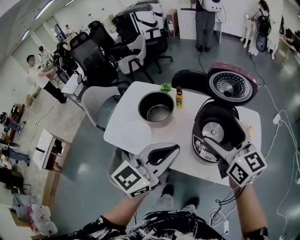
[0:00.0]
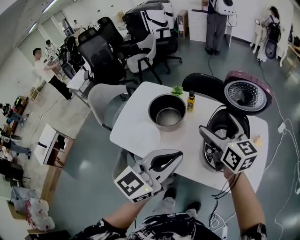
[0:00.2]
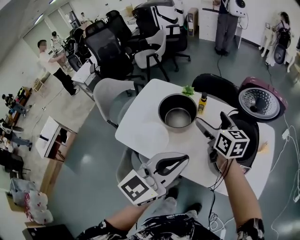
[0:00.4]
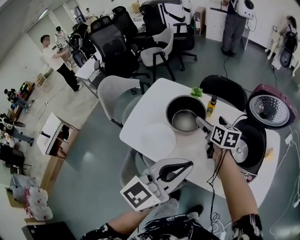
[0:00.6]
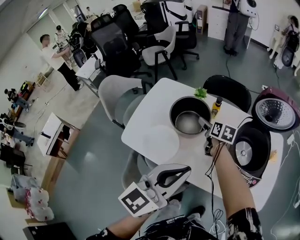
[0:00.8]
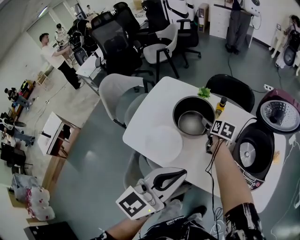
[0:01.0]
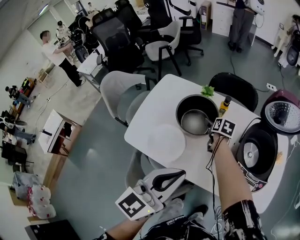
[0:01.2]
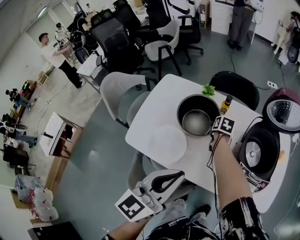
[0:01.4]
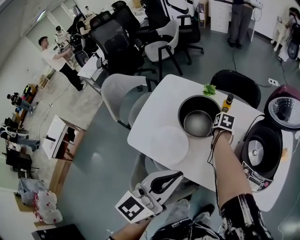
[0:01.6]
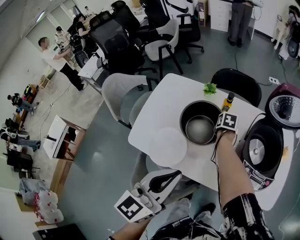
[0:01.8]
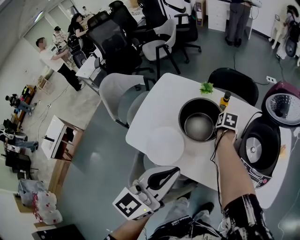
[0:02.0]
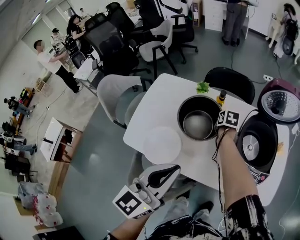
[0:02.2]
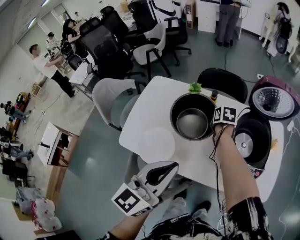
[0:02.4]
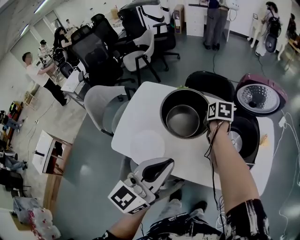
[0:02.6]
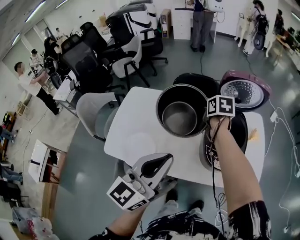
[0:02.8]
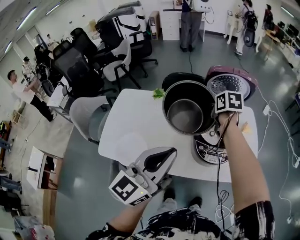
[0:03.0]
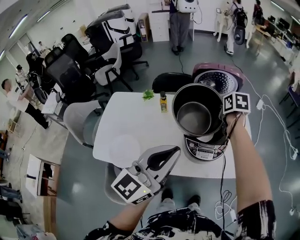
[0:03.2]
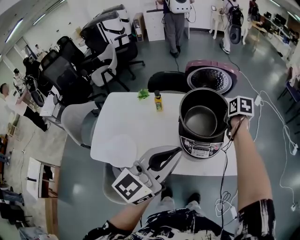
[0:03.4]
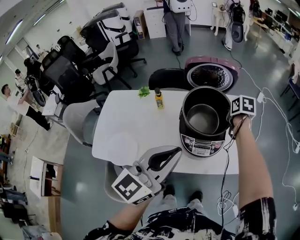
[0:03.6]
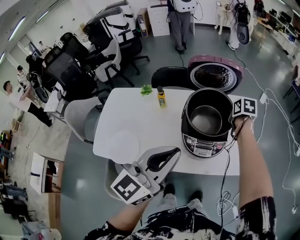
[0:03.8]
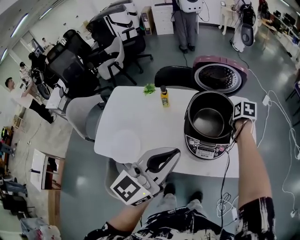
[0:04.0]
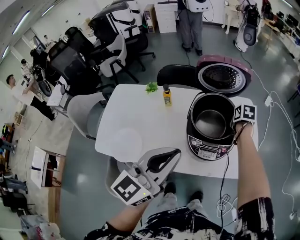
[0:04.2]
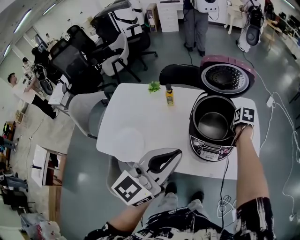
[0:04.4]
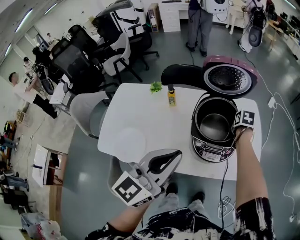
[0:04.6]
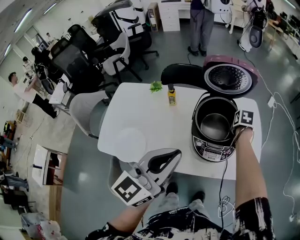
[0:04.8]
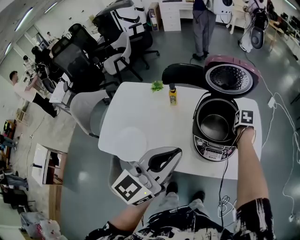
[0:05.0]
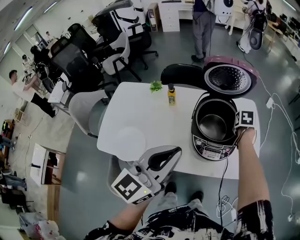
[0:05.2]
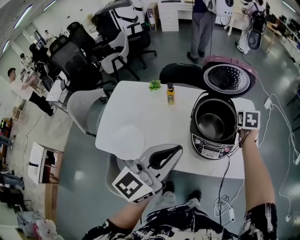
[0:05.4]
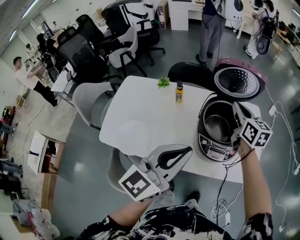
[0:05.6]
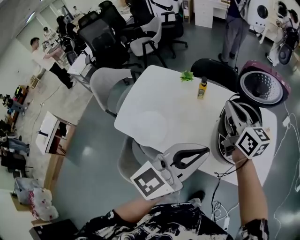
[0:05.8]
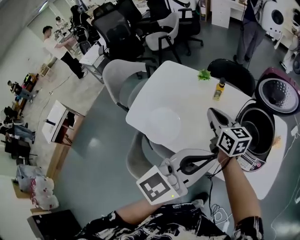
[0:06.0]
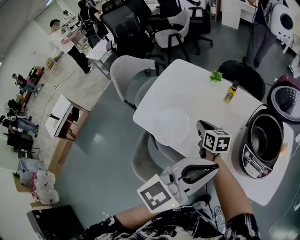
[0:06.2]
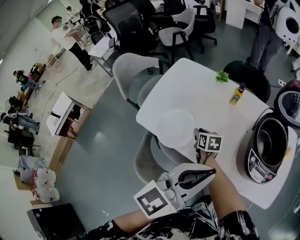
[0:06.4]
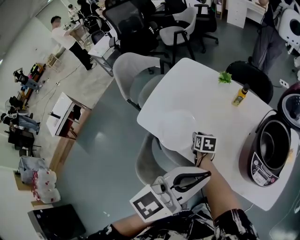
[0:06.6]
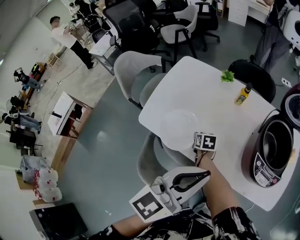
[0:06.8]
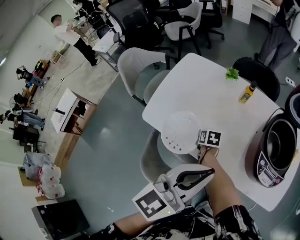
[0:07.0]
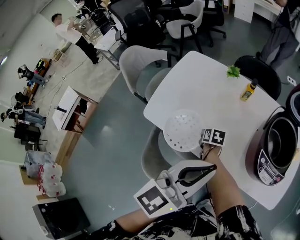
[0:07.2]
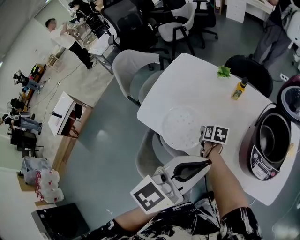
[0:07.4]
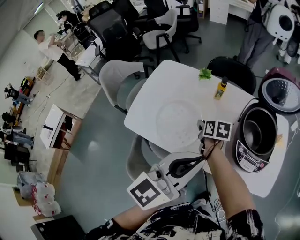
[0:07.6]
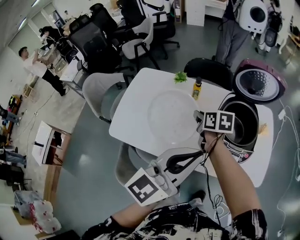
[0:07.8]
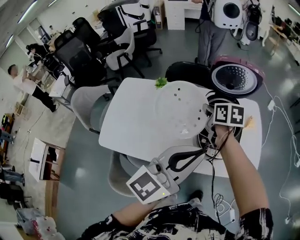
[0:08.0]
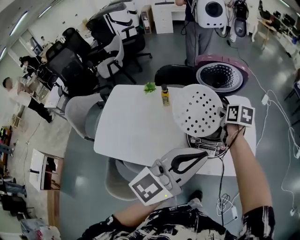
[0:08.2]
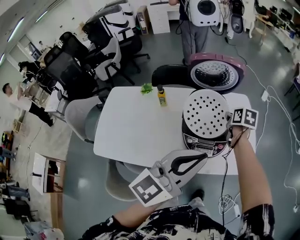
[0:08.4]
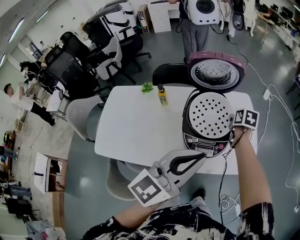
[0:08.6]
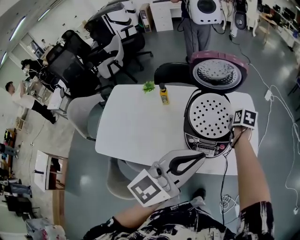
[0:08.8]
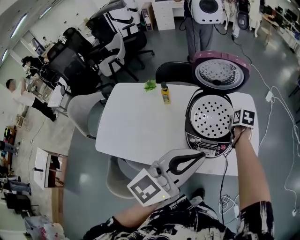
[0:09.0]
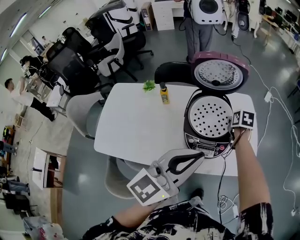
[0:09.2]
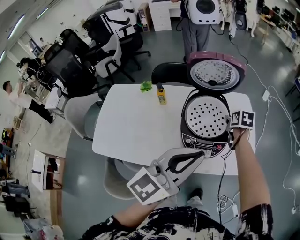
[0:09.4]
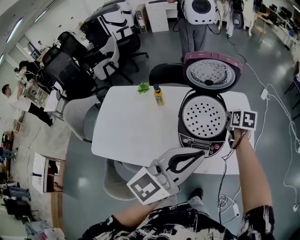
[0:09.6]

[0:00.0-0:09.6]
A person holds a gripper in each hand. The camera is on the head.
0:00.0 to 0:01.6: The left gripper shifts some 20 cm to the left, while the right gripper goes some 50 cm downward, forward and to the left, points its fingers some 50 degrees further downward, and closes its fingers.
0:01.6 to 0:03.2: The right gripper shifts some 40 cm to the right and upward. Meanwhile the left gripper is displaced to the right and upward by approximately 20 cm, and changes its angle by about 20 degrees.
0:03.2 to 0:04.8: The right gripper is displaced downward and to the right by roughly 15 cm.
0:04.8 to 0:06.4: The left gripper changes place by about 10 cm; the right gripper travels upward and back again, some 25 cm each way, and swivels approximately 50 degrees.
0:06.4 to 0:08.0: The right gripper shifts some 35 cm to the right and upward, and turns by about 20 degrees; the left gripper moves to the right, approximately 15 cm.
0:08.0 to 0:09.6: The right gripper travels to the right by roughly 25 cm, and rotates some 20 degrees. Meanwhile the left gripper heads to the right, covering approximately 10 cm.

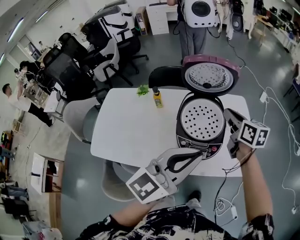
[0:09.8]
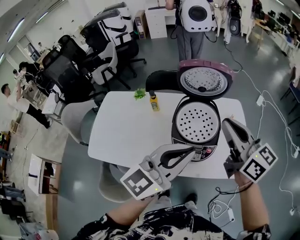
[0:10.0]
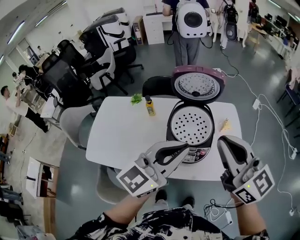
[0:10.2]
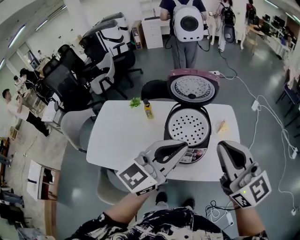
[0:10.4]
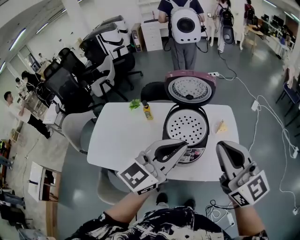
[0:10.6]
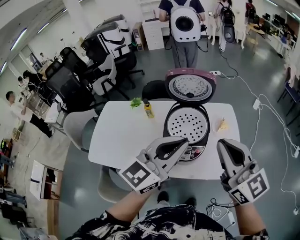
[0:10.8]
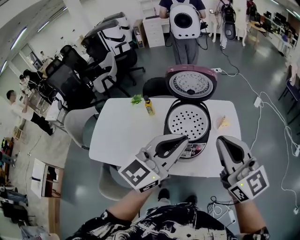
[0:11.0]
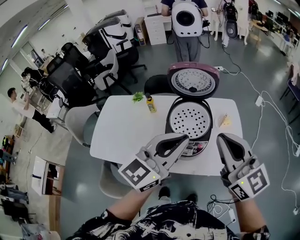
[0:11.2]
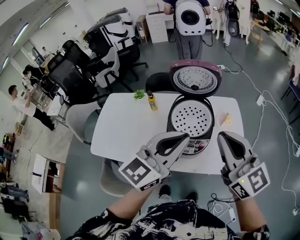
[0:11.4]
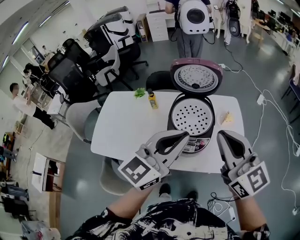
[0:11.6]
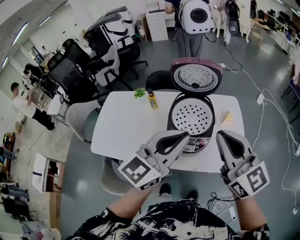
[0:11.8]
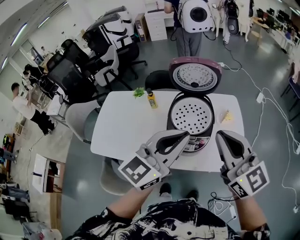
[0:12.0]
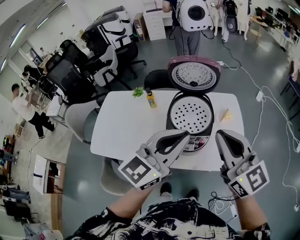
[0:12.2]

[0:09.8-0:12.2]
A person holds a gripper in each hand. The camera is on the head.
0:09.8 to 0:11.0: The right gripper shifts roughly 25 cm backward and upward, and swivels some 40 degrees; the left gripper moves some 5 cm.
0:11.0 to 0:12.2: The grippers stay close to where they were, moving slightly.

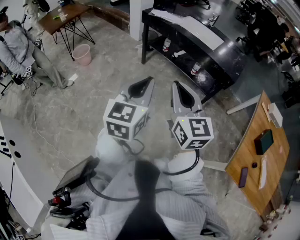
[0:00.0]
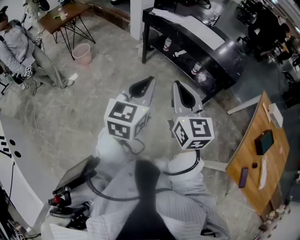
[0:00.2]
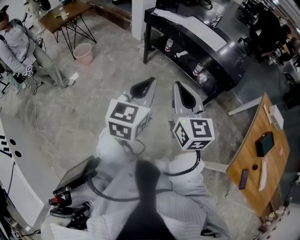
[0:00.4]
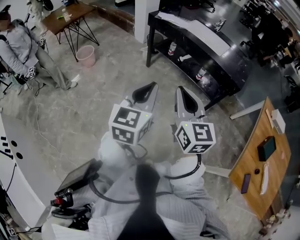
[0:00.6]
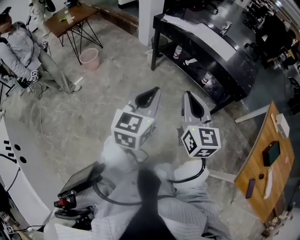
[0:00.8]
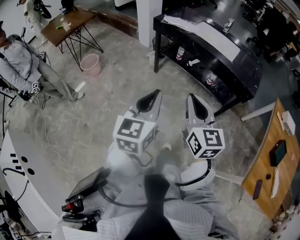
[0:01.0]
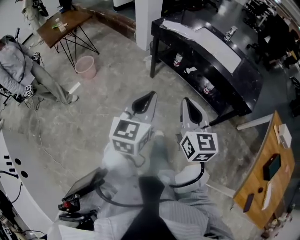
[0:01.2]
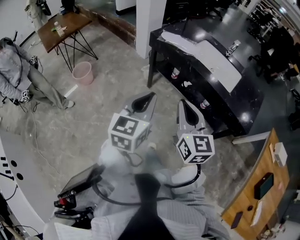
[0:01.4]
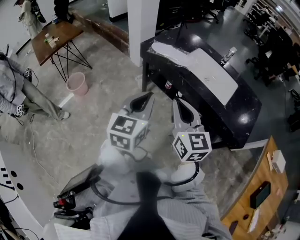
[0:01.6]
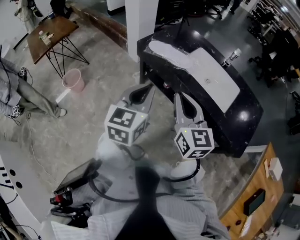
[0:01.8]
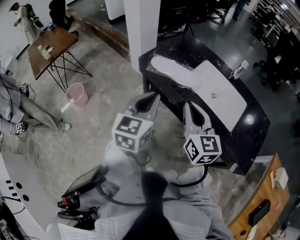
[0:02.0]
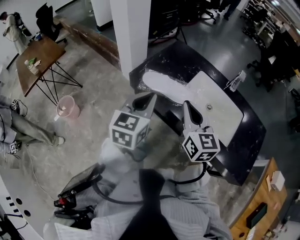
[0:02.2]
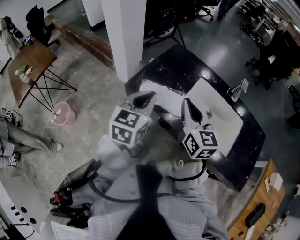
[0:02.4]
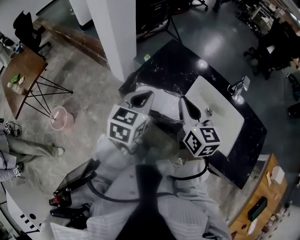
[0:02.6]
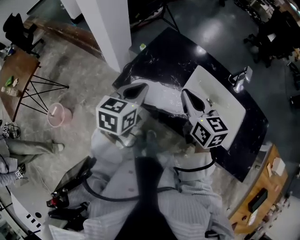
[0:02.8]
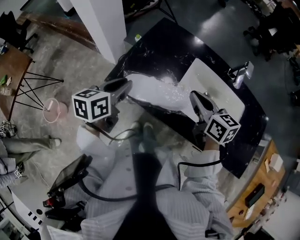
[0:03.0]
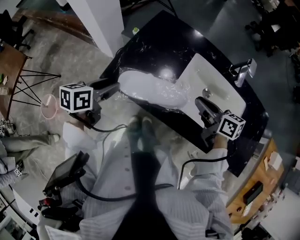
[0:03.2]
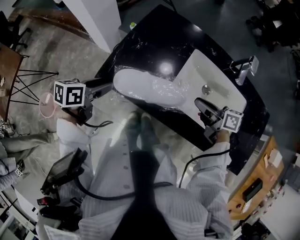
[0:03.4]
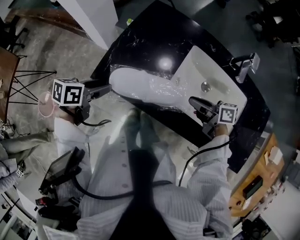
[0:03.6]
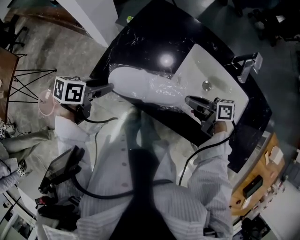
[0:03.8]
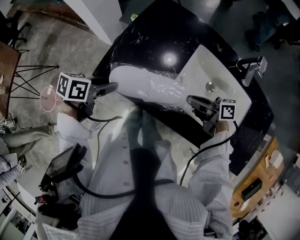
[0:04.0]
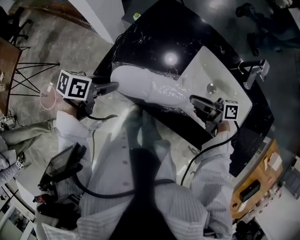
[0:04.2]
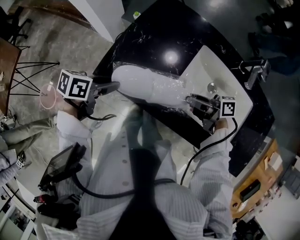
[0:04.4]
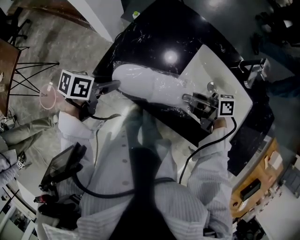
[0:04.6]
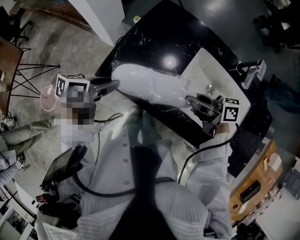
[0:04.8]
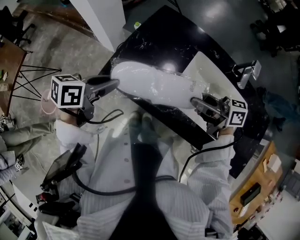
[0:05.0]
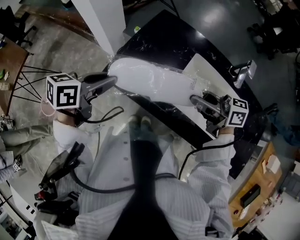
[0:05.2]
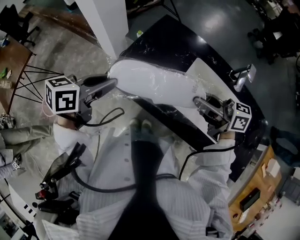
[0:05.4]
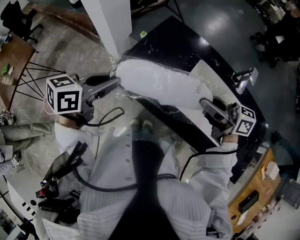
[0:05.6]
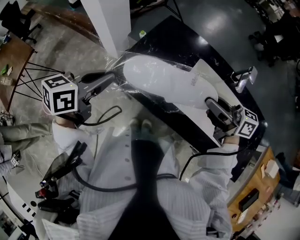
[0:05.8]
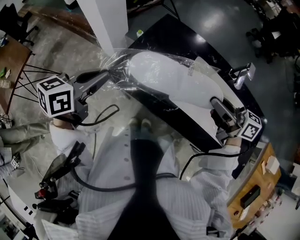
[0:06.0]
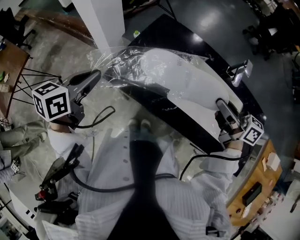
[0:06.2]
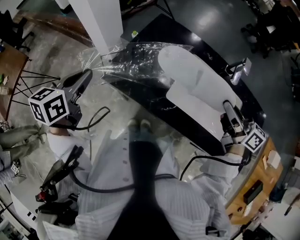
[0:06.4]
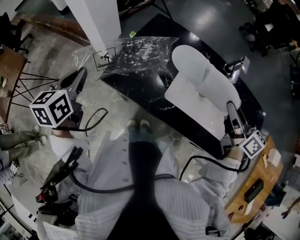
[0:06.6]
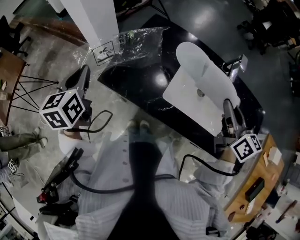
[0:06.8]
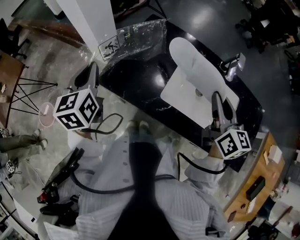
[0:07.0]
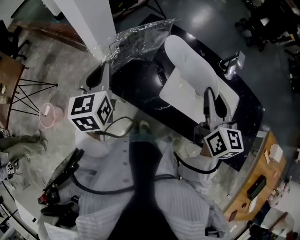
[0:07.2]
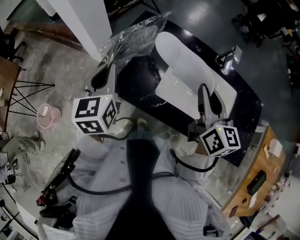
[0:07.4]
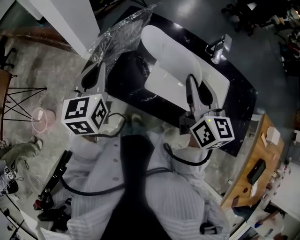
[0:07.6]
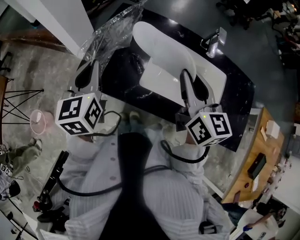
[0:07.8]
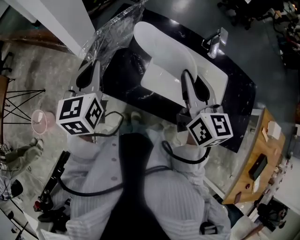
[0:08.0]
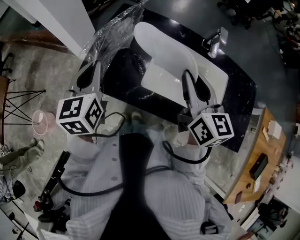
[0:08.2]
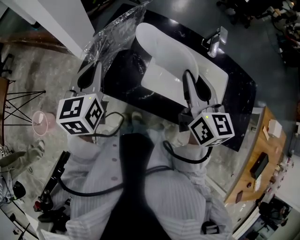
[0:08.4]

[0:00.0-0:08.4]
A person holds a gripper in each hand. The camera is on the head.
0:00.0 to 0:01.4: The grippers both shift forward by roughly 30 cm.
0:01.4 to 0:02.8: Both grippers are carried forward, about 60 cm. The left gripper rotates about 30 degrees.
0:02.8 to 0:04.2: The grippers both shift downward by approximately 15 cm. The right gripper changes its angle by about 60 degrees, and opens up, while the left gripper changes its angle by some 40 degrees, and opens up.
0:04.2 to 0:05.6: The grippers both shift upward by roughly 20 cm. The left gripper swivels roughly 30 degrees, and closes up; the right gripper turns by roughly 30 degrees.
0:05.6 to 0:07.0: The right gripper is displaced to the right by some 10 cm, and changes its angle by approximately 60 degrees. The left gripper travels forward by some 5 cm, and changes its angle by about 50 degrees.
0:07.0 to 0:08.4: The left gripper is displaced to the right by some 10 cm.

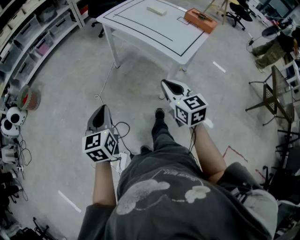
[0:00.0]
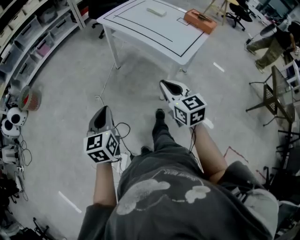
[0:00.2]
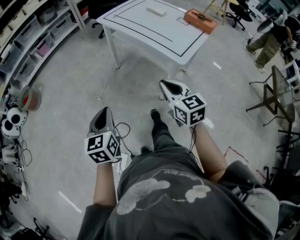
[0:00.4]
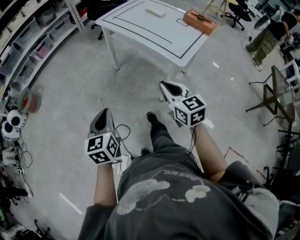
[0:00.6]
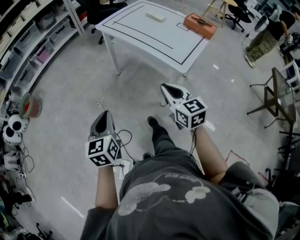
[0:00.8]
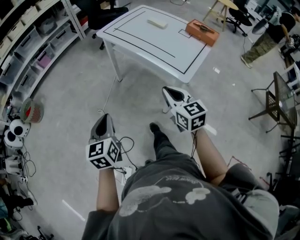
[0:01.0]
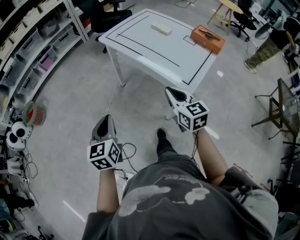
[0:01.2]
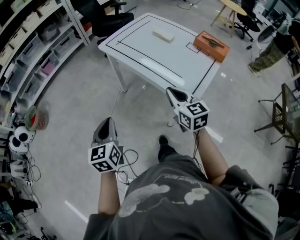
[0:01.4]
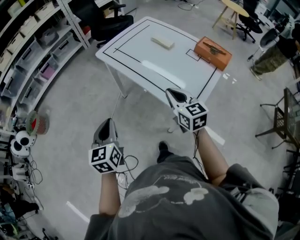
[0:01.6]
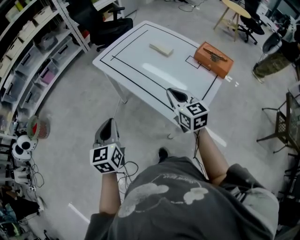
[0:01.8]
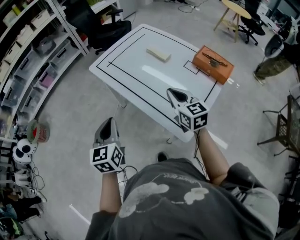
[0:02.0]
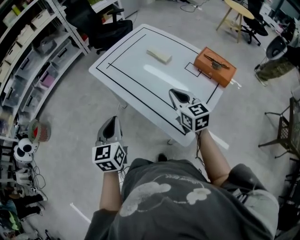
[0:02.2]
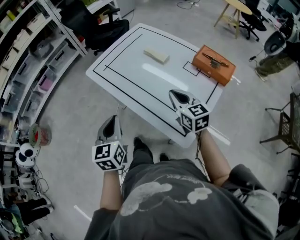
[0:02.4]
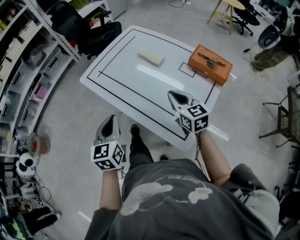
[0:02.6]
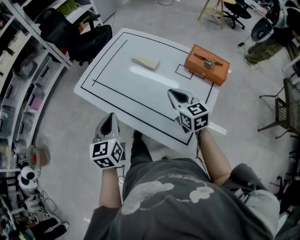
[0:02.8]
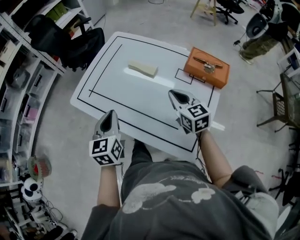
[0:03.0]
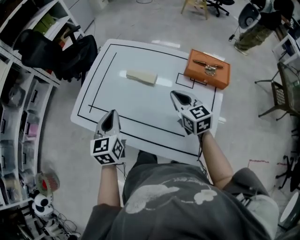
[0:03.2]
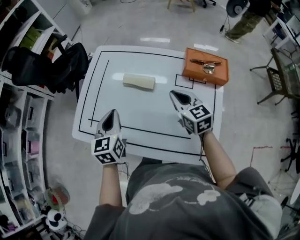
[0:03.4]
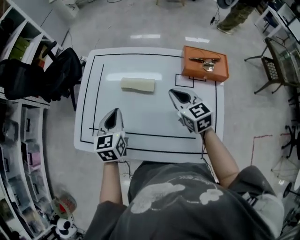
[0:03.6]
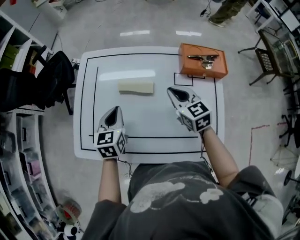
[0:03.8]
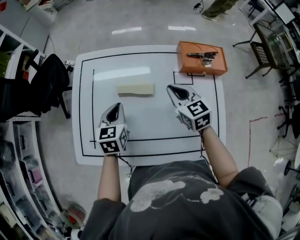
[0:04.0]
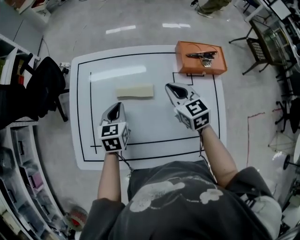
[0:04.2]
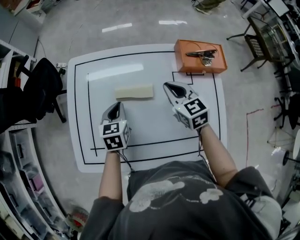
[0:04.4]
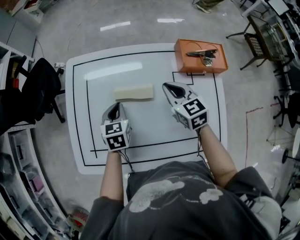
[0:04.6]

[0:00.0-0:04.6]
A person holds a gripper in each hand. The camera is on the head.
0:00.0 to 0:01.6: Both grippers move forward, some 25 cm.
0:01.6 to 0:03.0: The grippers both shift forward and to the right by about 30 cm.
0:03.0 to 0:04.6: The left gripper ends up approximately 30 cm from where it was, and turns by roughly 40 degrees, while the right gripper changes place by about 15 cm, and turns by roughly 30 degrees.
